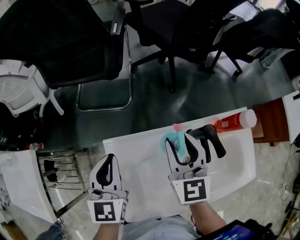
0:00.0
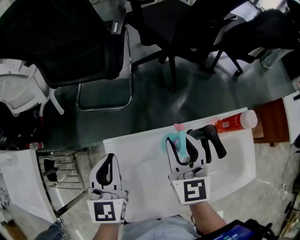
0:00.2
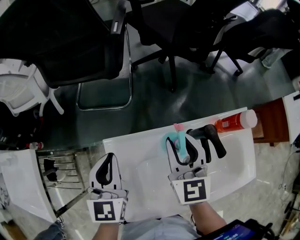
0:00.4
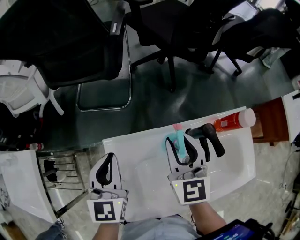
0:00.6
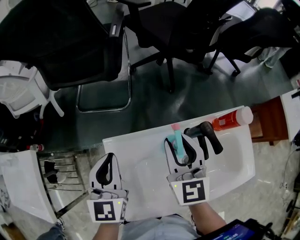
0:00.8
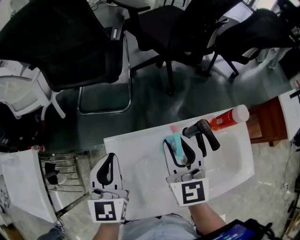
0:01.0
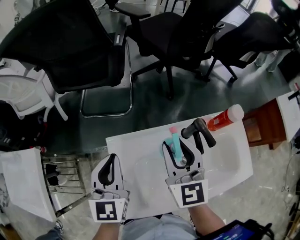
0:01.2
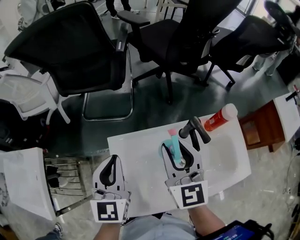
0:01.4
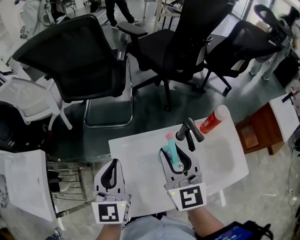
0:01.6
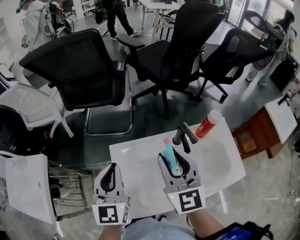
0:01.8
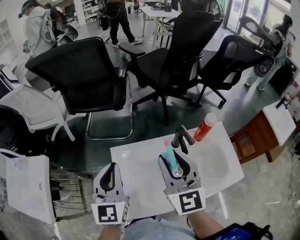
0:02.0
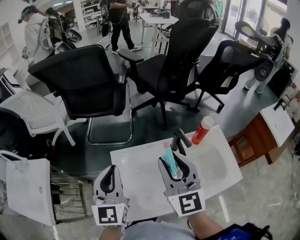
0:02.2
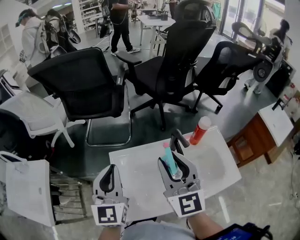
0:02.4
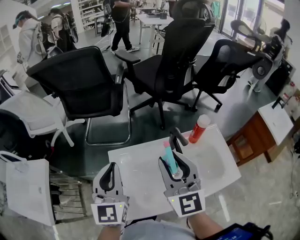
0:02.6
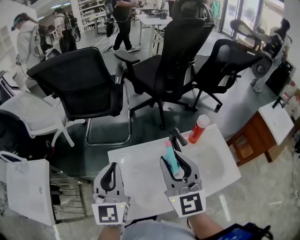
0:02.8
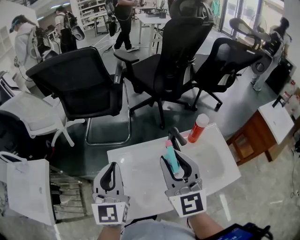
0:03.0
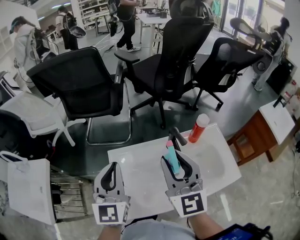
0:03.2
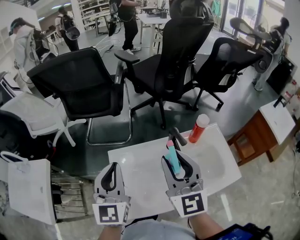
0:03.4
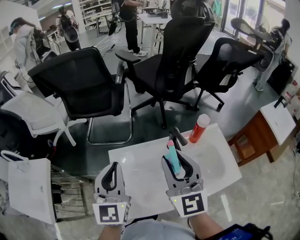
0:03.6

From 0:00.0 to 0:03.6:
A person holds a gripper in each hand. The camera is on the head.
From 0:00.0 to 0:01.8: The left gripper moves backward and upward, approximately 15 cm. Meanwhile the right gripper travels upward and backward by some 20 cm.
From 0:01.8 to 0:03.6: Both grippers travel together upward, approximately 5 cm.

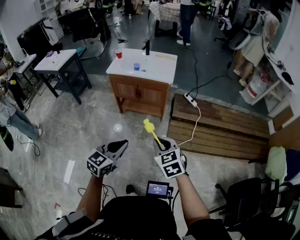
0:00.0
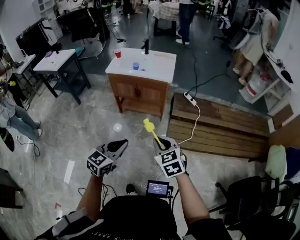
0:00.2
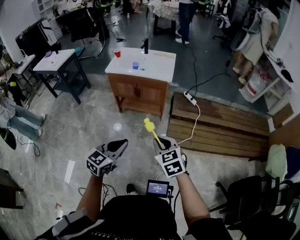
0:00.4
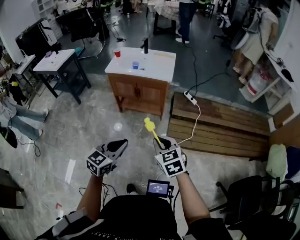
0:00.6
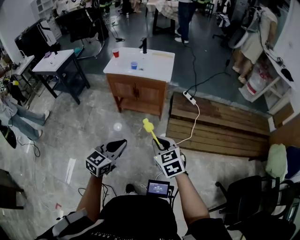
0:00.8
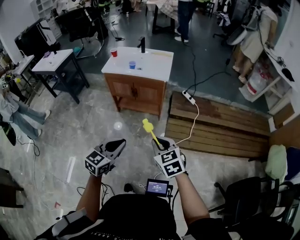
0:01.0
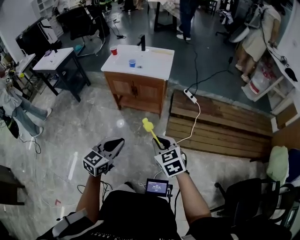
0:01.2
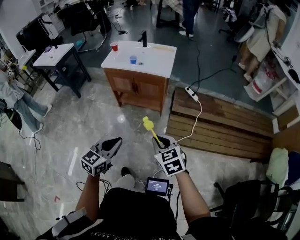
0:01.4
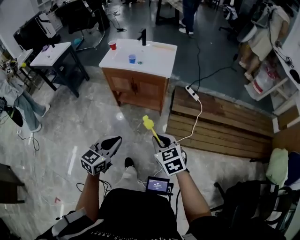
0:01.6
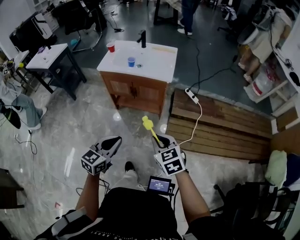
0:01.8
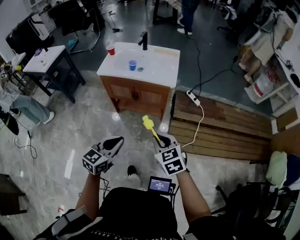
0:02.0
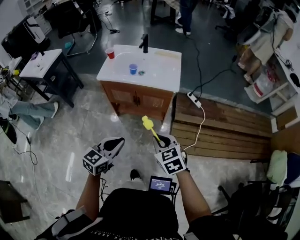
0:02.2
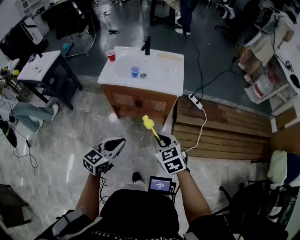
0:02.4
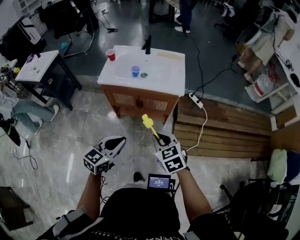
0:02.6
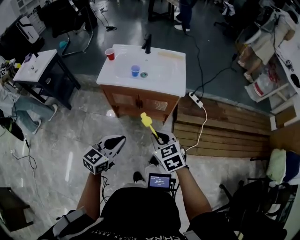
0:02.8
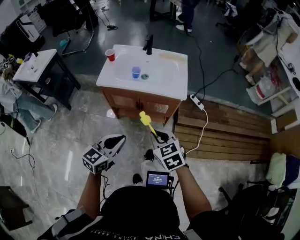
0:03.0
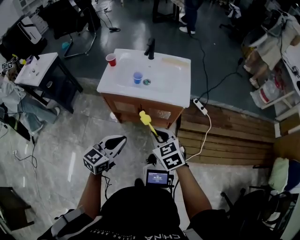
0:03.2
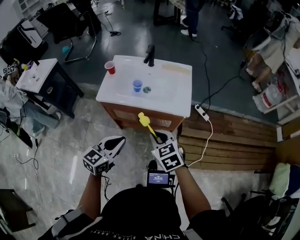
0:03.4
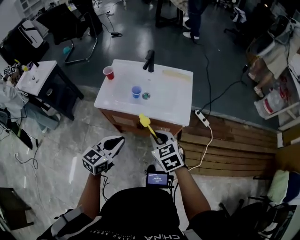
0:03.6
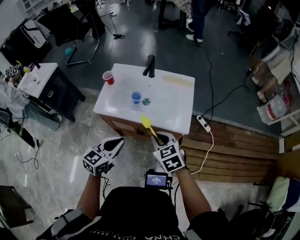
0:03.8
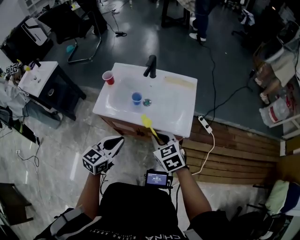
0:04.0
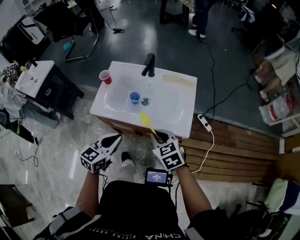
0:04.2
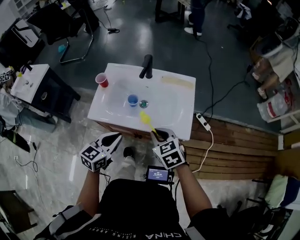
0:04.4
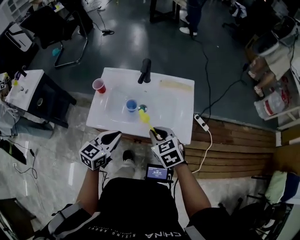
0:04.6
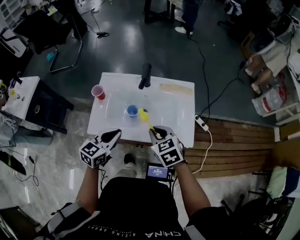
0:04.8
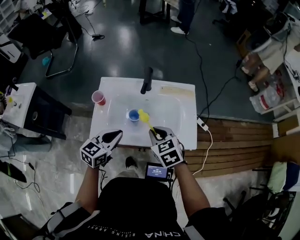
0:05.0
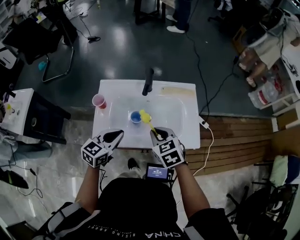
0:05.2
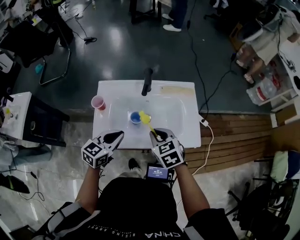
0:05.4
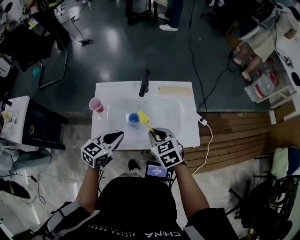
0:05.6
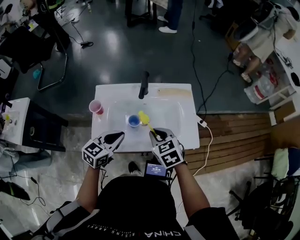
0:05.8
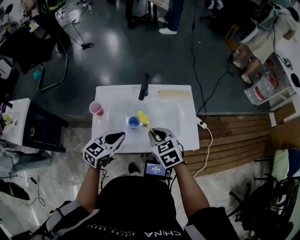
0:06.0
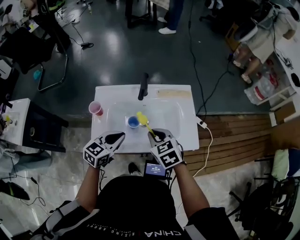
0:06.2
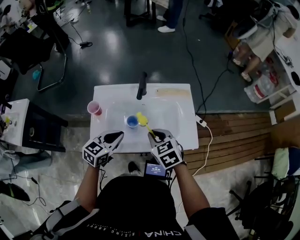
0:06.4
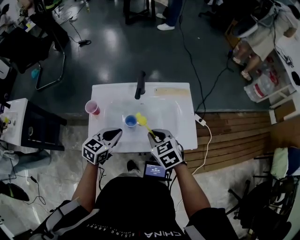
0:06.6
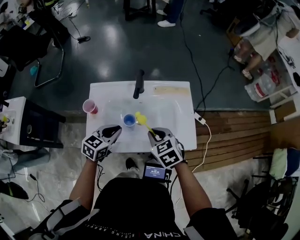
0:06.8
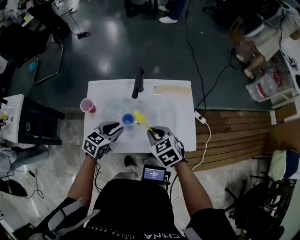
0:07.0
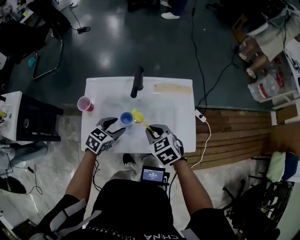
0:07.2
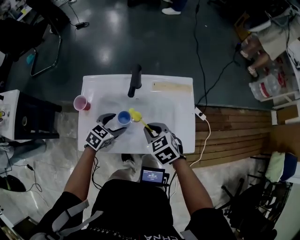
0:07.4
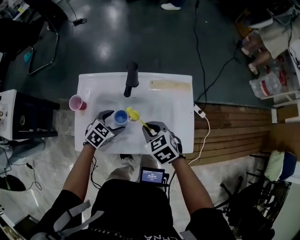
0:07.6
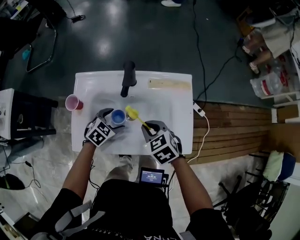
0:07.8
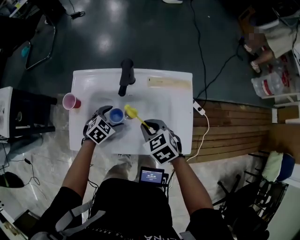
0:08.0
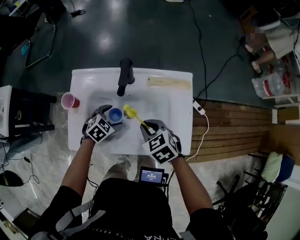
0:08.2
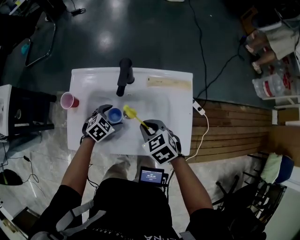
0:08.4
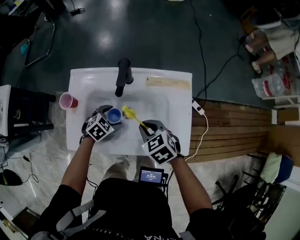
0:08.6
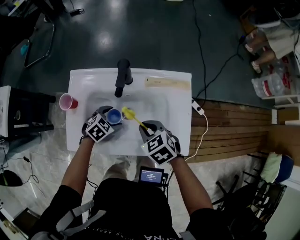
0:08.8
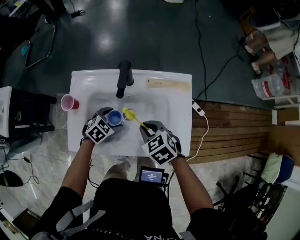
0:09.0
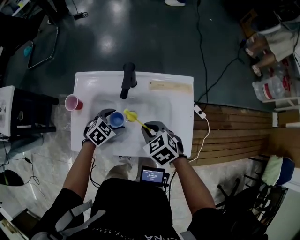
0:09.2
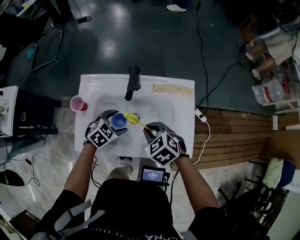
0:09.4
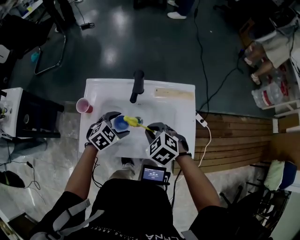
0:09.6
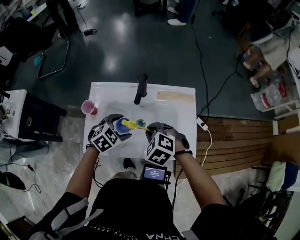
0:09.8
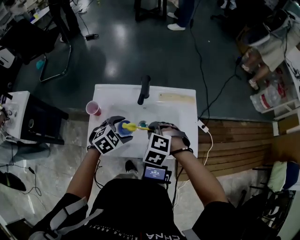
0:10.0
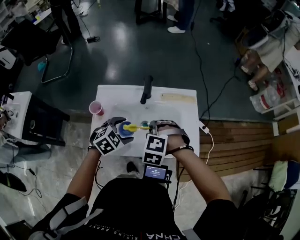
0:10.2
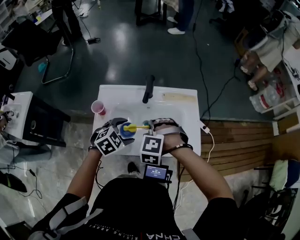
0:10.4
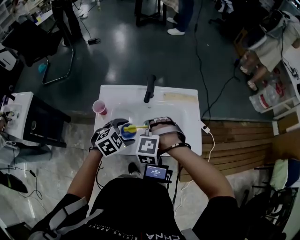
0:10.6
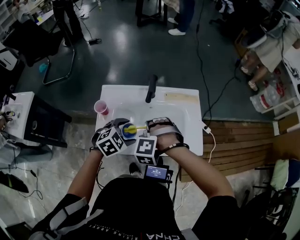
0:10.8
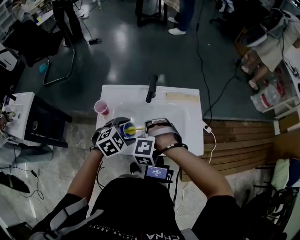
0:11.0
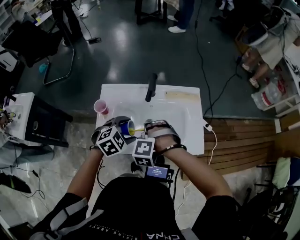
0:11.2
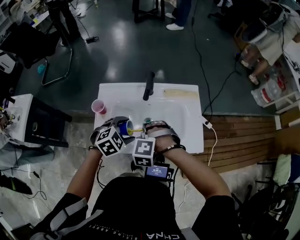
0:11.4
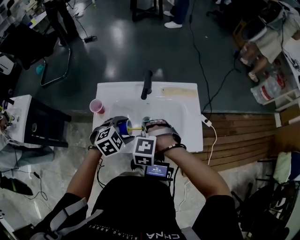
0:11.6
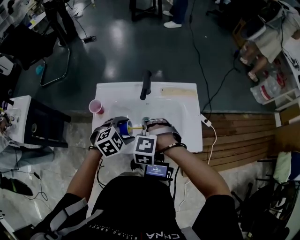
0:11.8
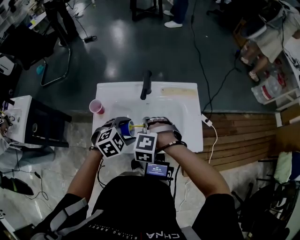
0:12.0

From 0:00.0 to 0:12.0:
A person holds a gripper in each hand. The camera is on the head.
From 0:00.0 to 0:01.6: The grippers both shift forward by roughly 5 cm.
From 0:01.6 to 0:03.0: Both grippers move forward and to the left, approximately 30 cm.
From 0:03.0 to 0:04.4: The grippers both shift forward by some 30 cm.
From 0:04.4 to 0:06.0: The two grippers go some 15 cm forward and to the left.
From 0:06.0 to 0:07.6: The right gripper is displaced downward and forward by about 10 cm. Meanwhile the left gripper shifts some 15 cm downward and forward, swivels some 30 degrees, and opens up.
From 0:07.6 to 0:09.0: The left gripper ends up roughly 5 cm from where it was.
From 0:09.0 to 0:10.4: The right gripper goes roughly 10 cm upward and to the left, and twists about 50 degrees counterclockwise, seen from behind; the left gripper heads upward and backward, covering some 15 cm.
From 0:10.4 to 0:12.0: There are only small adjustments of the grippers.

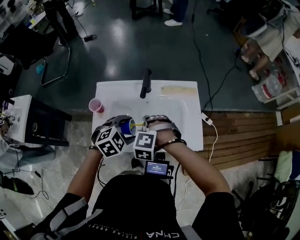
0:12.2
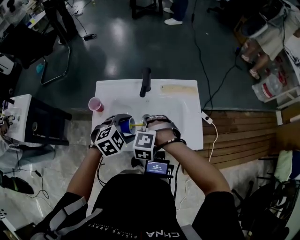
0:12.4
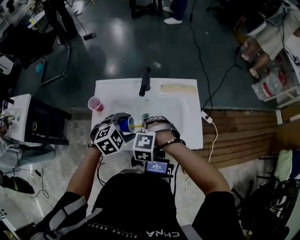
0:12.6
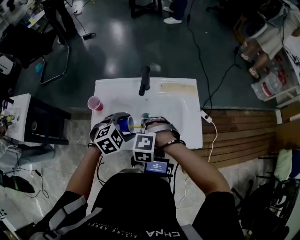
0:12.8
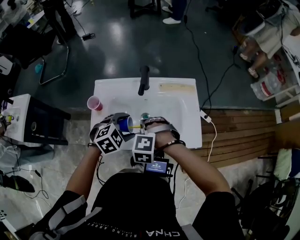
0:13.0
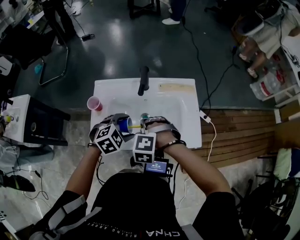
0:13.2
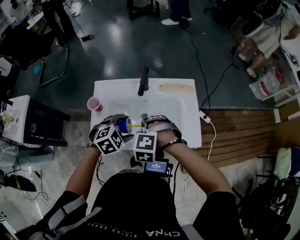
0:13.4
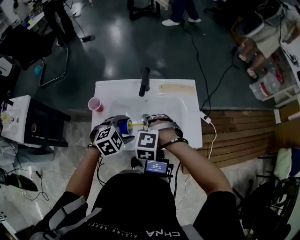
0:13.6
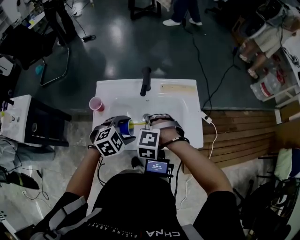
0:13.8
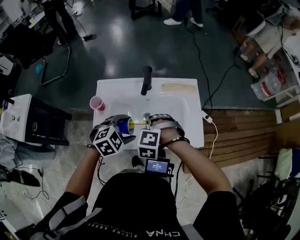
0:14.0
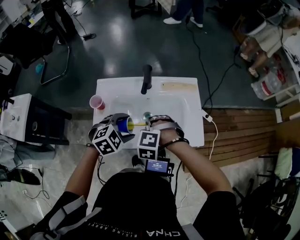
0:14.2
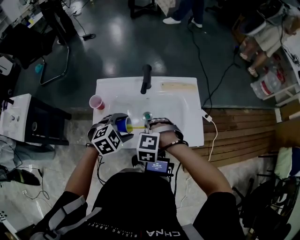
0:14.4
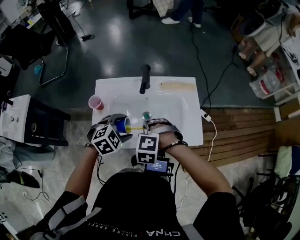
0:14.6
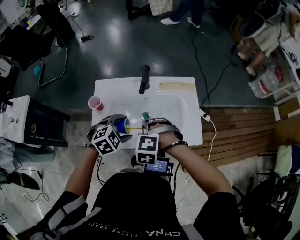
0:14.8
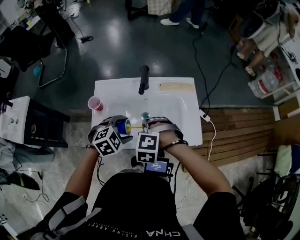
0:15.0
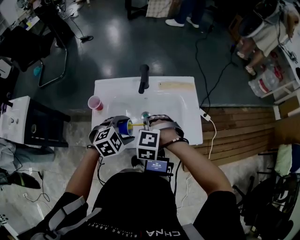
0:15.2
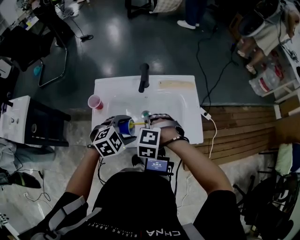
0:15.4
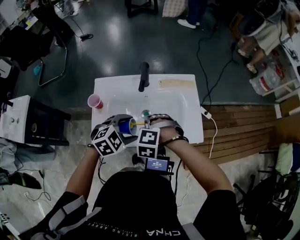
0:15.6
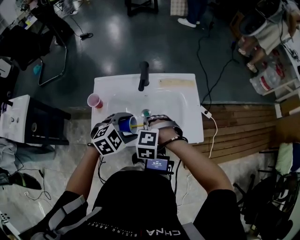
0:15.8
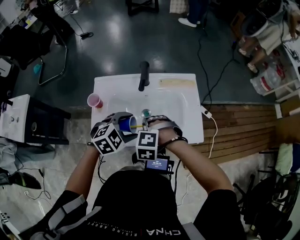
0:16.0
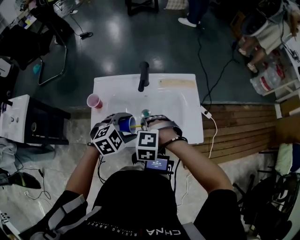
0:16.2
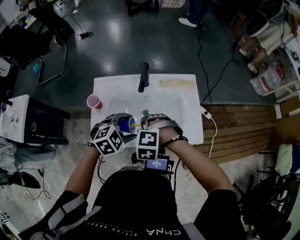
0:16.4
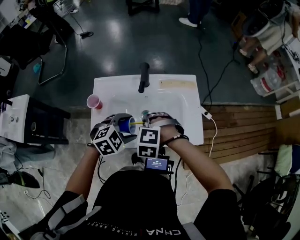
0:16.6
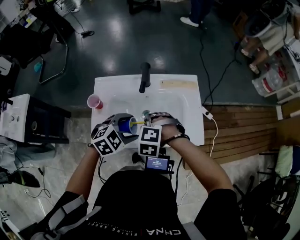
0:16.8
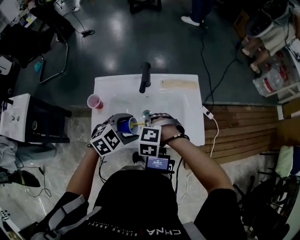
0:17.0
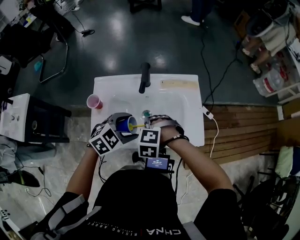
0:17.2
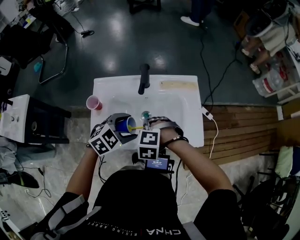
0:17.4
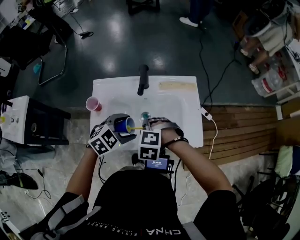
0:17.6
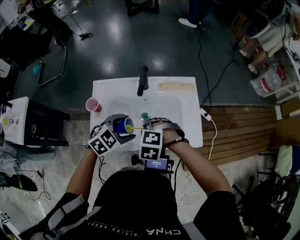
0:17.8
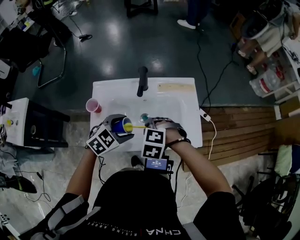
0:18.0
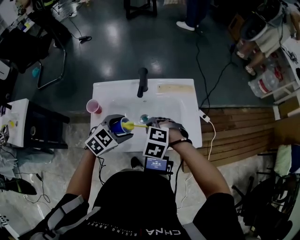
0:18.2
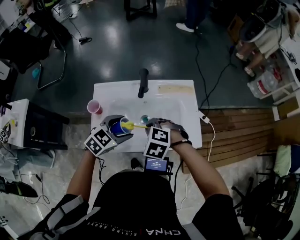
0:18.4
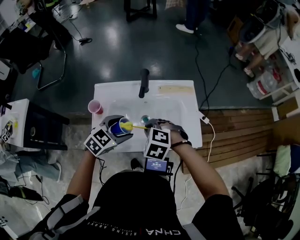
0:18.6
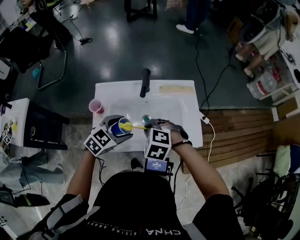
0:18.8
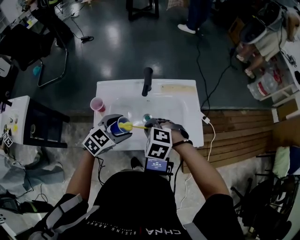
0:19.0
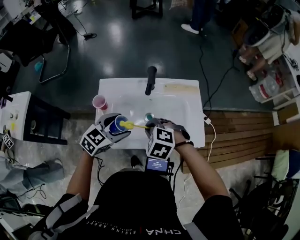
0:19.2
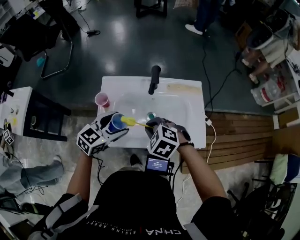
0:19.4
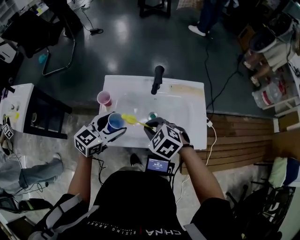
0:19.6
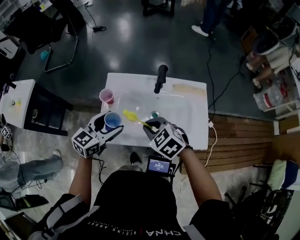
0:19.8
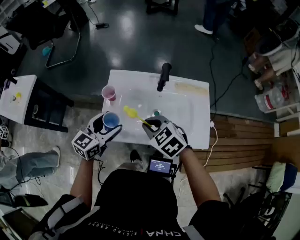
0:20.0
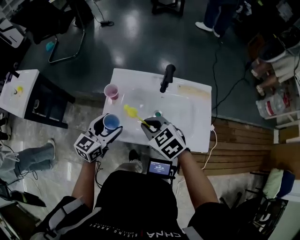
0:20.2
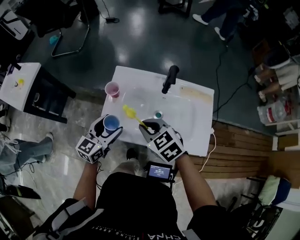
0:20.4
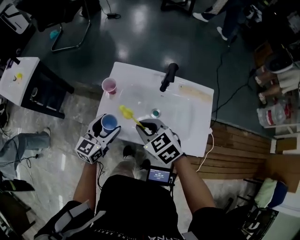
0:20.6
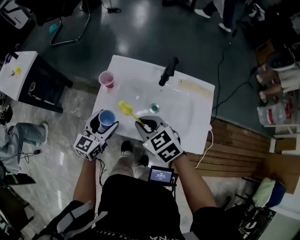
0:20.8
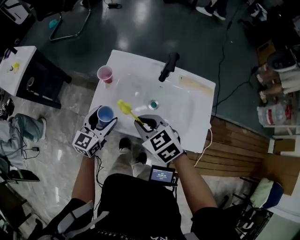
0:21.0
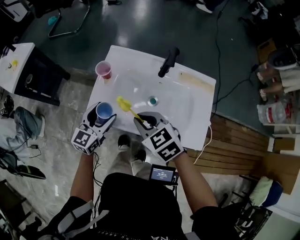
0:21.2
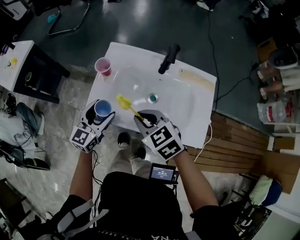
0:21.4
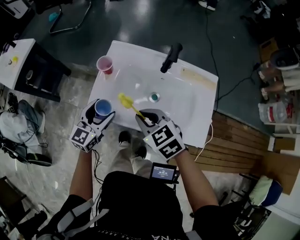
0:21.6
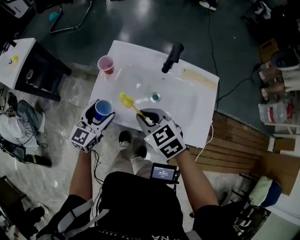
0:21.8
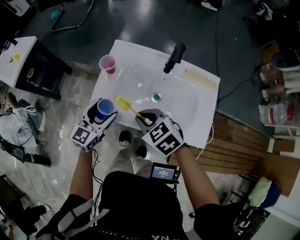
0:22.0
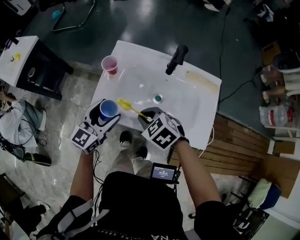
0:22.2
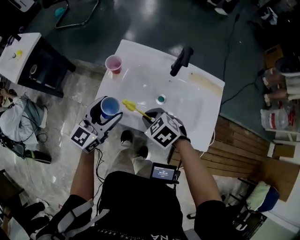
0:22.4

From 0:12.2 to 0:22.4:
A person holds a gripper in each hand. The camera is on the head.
From 0:12.2 to 0:18.0: The grippers stay close to where they were, moving slightly.
From 0:18.0 to 0:19.4: The left gripper moves to the left, roughly 5 cm, and swivels roughly 30 degrees. Meanwhile the right gripper shifts by about 5 cm.
From 0:19.4 to 0:21.0: The left gripper is displaced to the left and downward by some 10 cm, and changes its angle by some 40 degrees, while the right gripper turns by some 20 degrees.
From 0:21.0 to 0:22.4: The right gripper heads downward, covering approximately 10 cm, and rotates roughly 20 degrees, while the left gripper goes approximately 5 cm upward.
